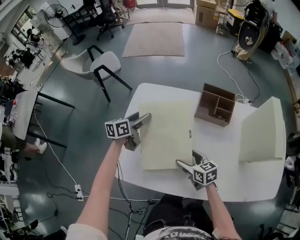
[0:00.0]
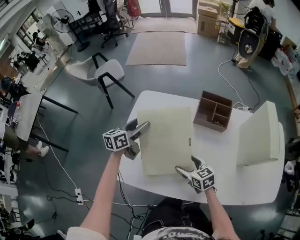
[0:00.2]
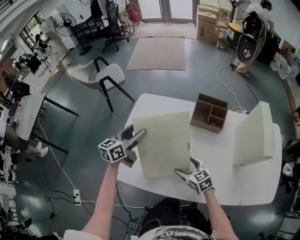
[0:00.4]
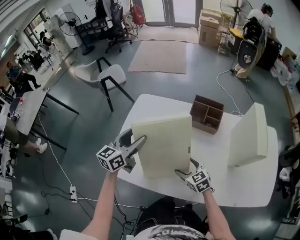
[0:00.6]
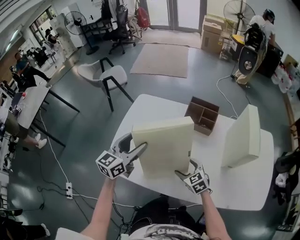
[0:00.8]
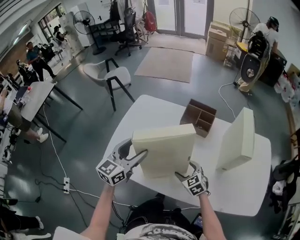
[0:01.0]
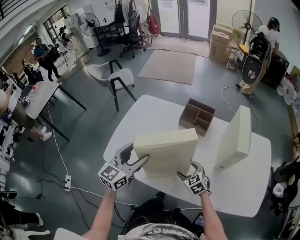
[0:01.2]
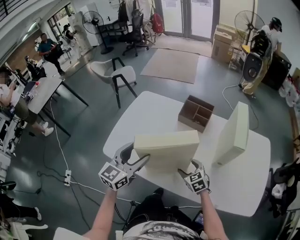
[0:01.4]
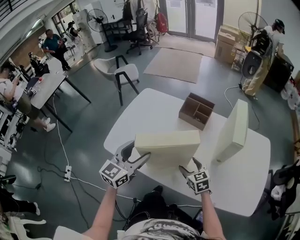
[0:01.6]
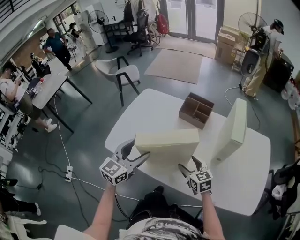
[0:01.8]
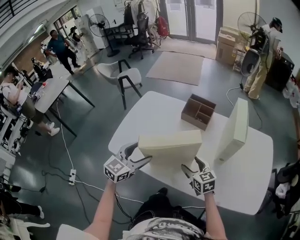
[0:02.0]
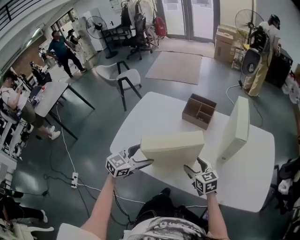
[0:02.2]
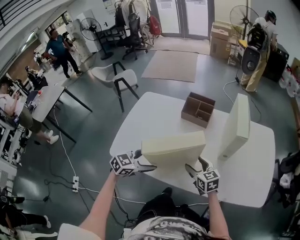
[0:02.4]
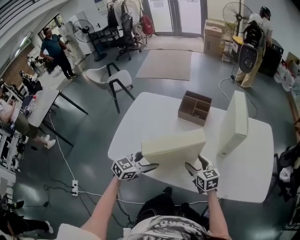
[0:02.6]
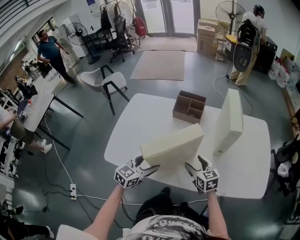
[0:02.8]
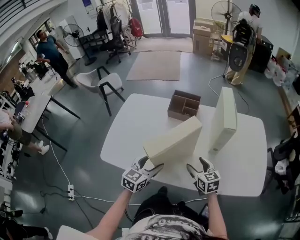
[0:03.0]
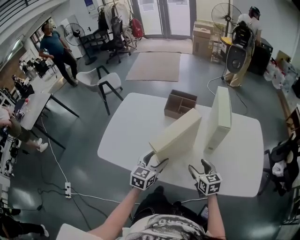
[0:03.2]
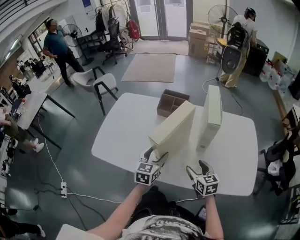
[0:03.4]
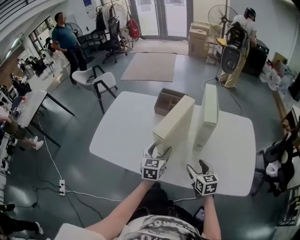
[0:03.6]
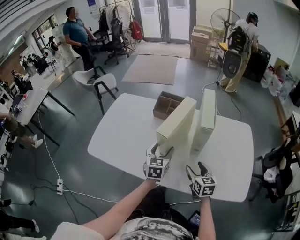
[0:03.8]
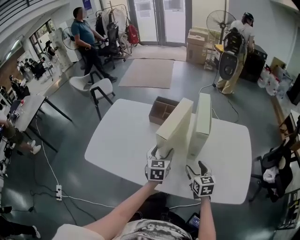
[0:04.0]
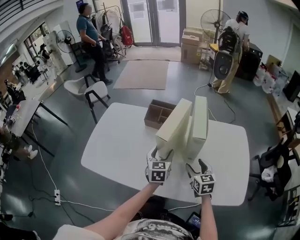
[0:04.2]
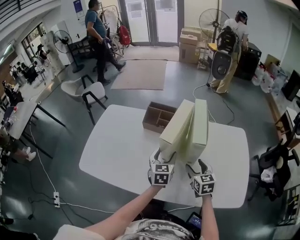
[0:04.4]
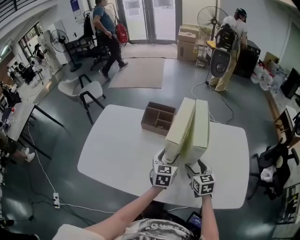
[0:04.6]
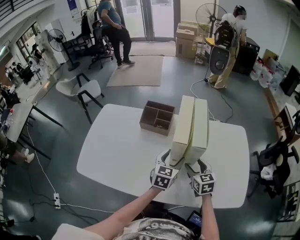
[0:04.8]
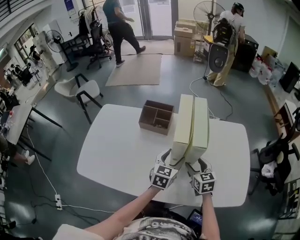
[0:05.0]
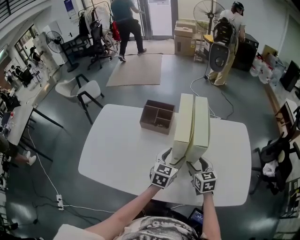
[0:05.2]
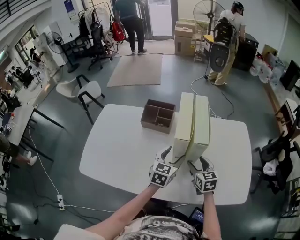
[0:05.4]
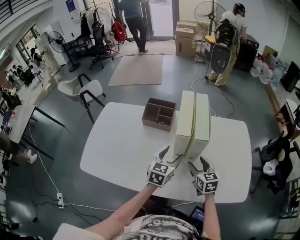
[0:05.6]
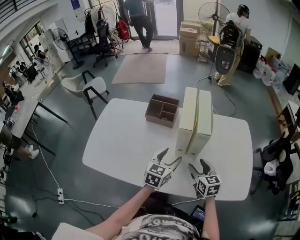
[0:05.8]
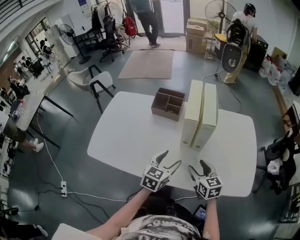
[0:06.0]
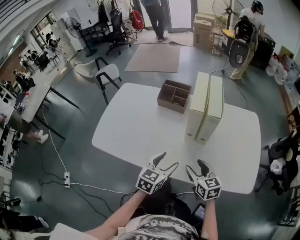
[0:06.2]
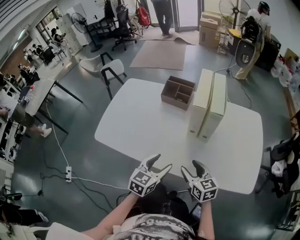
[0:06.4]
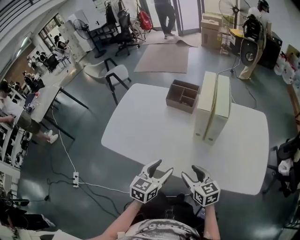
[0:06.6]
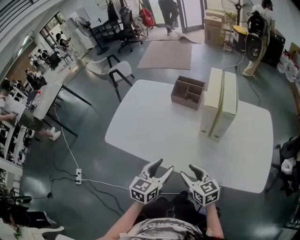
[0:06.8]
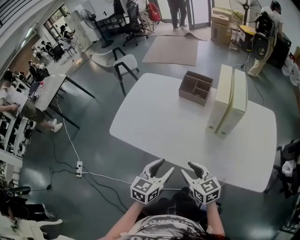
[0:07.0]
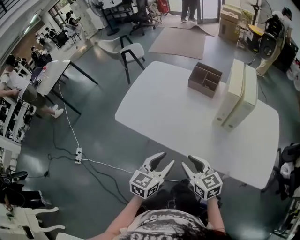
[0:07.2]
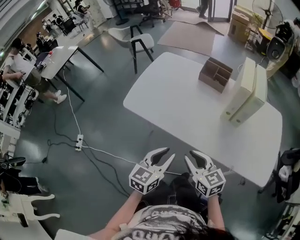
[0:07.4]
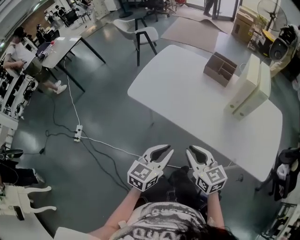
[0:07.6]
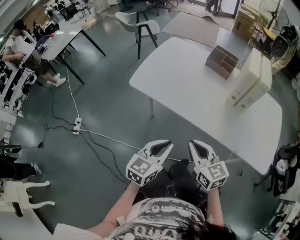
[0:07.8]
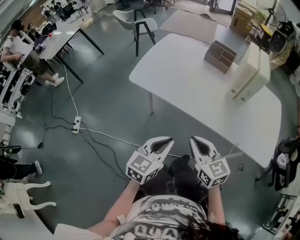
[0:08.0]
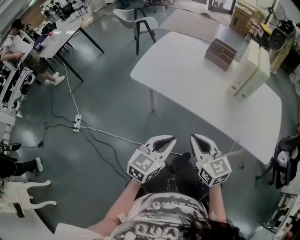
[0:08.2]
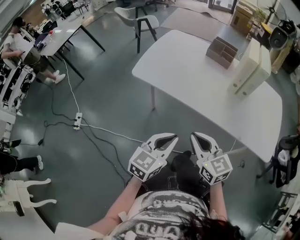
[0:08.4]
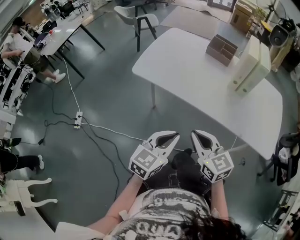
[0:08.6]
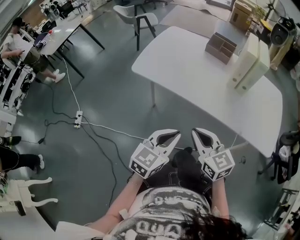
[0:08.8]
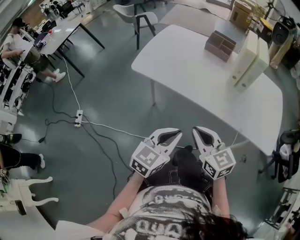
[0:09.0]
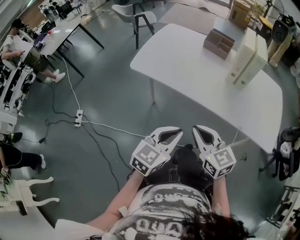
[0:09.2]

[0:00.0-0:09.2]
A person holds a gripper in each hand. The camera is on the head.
0:00.0 to 0:01.6: The left gripper travels backward and upward by roughly 40 cm, and swivels roughly 40 degrees. The right gripper is displaced to the right and backward by approximately 20 cm, and turns by approximately 30 degrees.
0:01.6 to 0:03.0: The right gripper heads to the right, covering approximately 5 cm. The left gripper travels downward and to the right by about 15 cm, and swivels some 20 degrees.
0:03.0 to 0:04.6: The right gripper goes some 15 cm to the right and forward, while the left gripper is displaced to the right and forward by about 25 cm.
0:04.6 to 0:06.2: The two grippers go approximately 15 cm backward.
0:06.2 to 0:07.6: Both grippers move to the left and backward, approximately 25 cm. The left gripper closes, while the right gripper swivels approximately 20 degrees, and closes.
0:07.6 to 0:09.2: Both grippers travel together backward, approximately 10 cm.

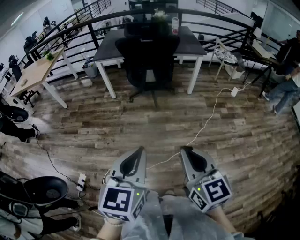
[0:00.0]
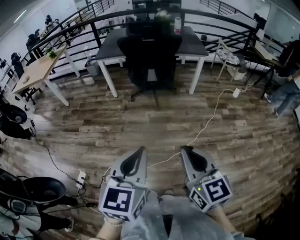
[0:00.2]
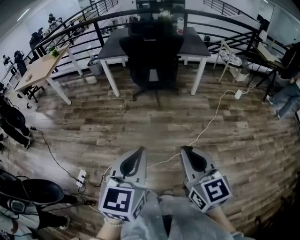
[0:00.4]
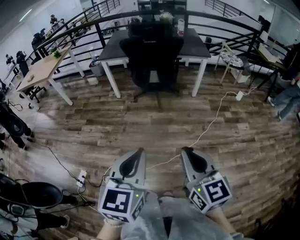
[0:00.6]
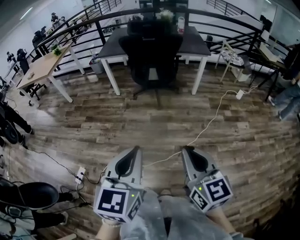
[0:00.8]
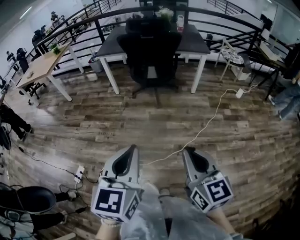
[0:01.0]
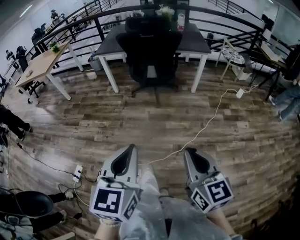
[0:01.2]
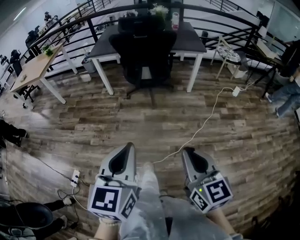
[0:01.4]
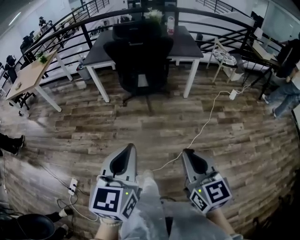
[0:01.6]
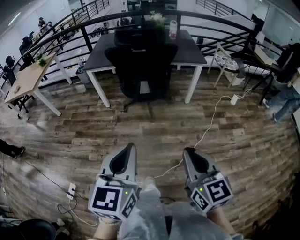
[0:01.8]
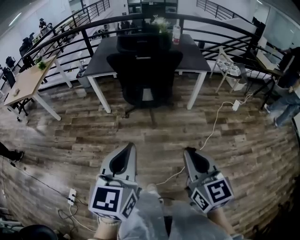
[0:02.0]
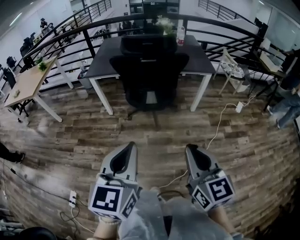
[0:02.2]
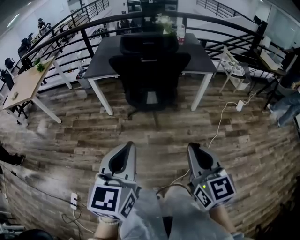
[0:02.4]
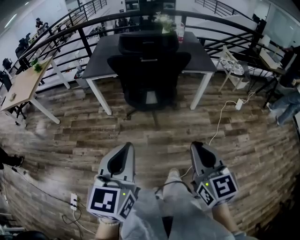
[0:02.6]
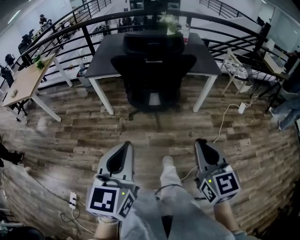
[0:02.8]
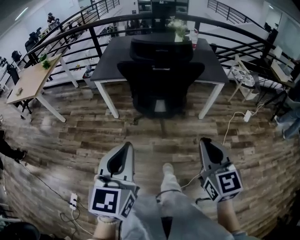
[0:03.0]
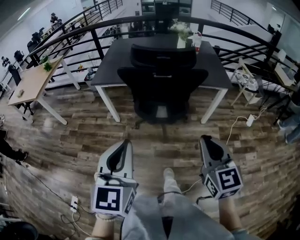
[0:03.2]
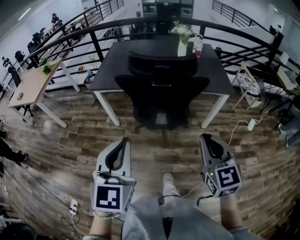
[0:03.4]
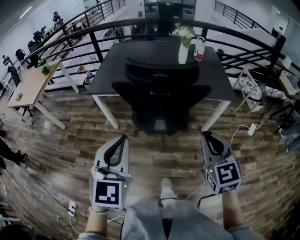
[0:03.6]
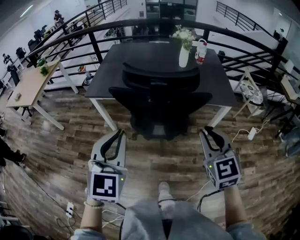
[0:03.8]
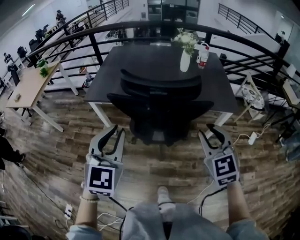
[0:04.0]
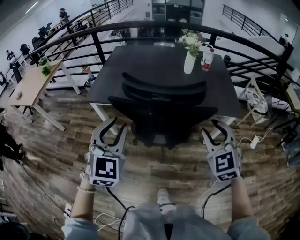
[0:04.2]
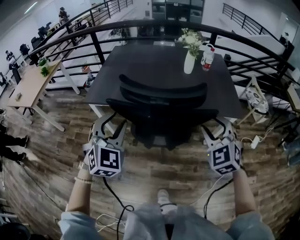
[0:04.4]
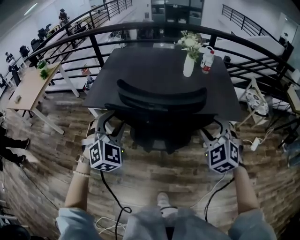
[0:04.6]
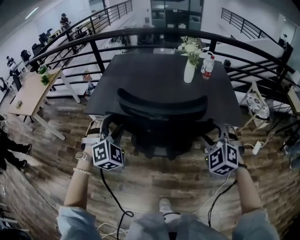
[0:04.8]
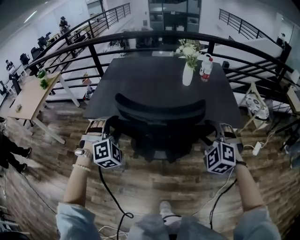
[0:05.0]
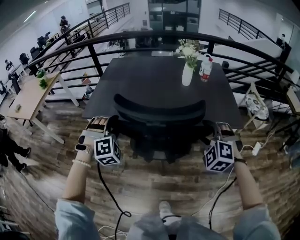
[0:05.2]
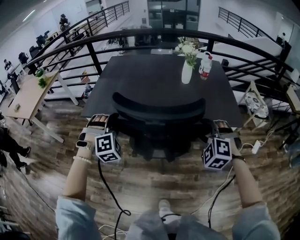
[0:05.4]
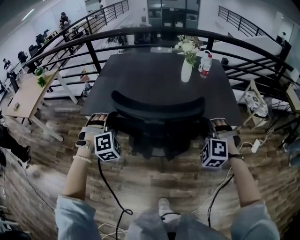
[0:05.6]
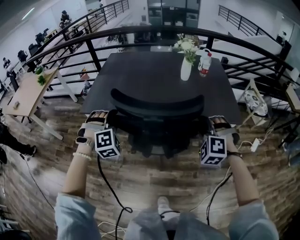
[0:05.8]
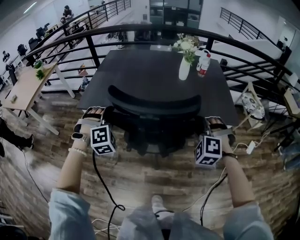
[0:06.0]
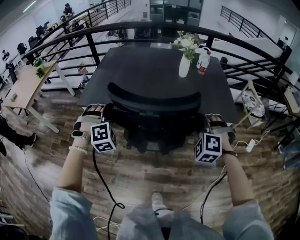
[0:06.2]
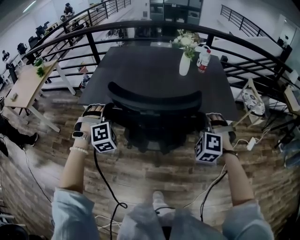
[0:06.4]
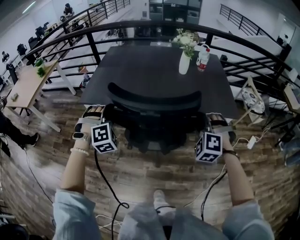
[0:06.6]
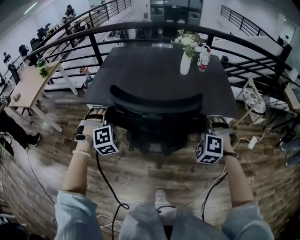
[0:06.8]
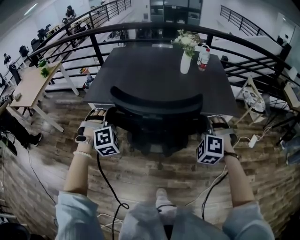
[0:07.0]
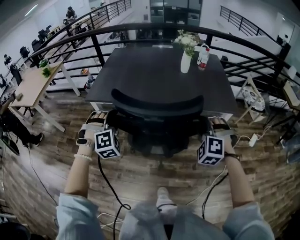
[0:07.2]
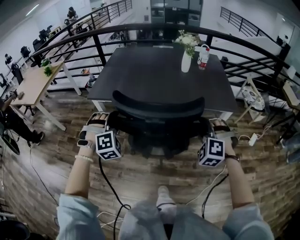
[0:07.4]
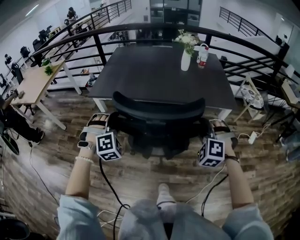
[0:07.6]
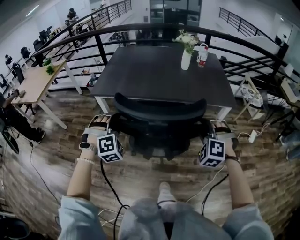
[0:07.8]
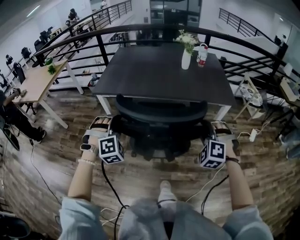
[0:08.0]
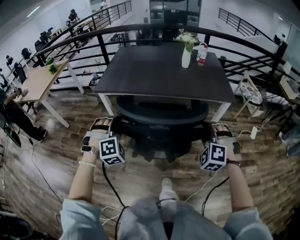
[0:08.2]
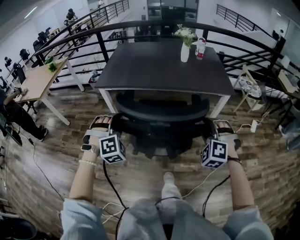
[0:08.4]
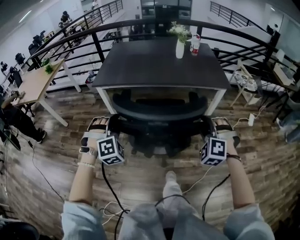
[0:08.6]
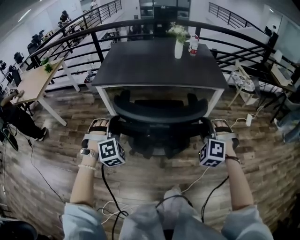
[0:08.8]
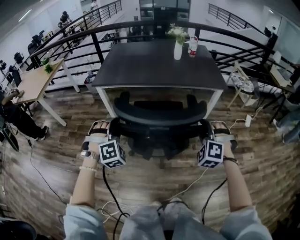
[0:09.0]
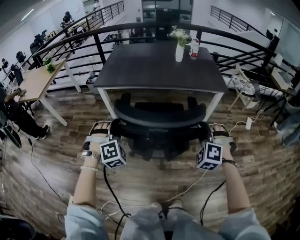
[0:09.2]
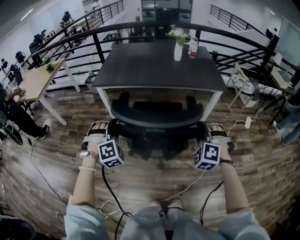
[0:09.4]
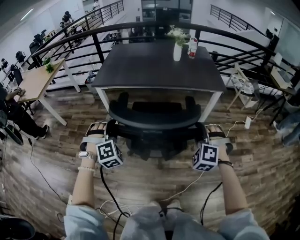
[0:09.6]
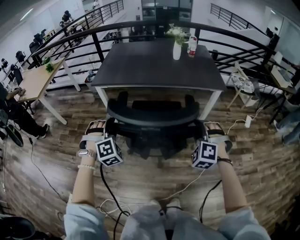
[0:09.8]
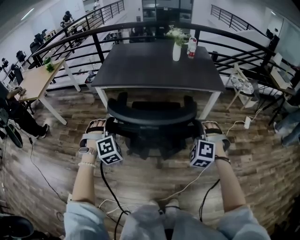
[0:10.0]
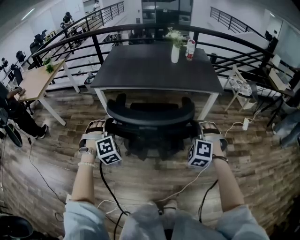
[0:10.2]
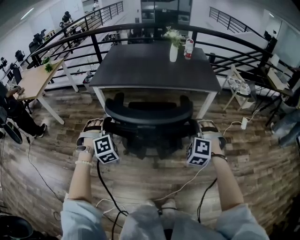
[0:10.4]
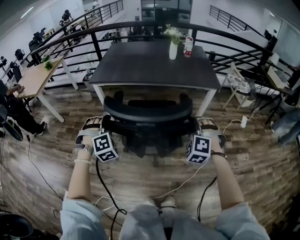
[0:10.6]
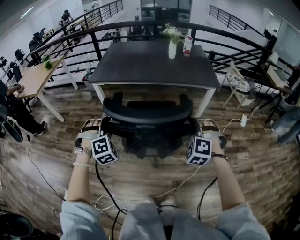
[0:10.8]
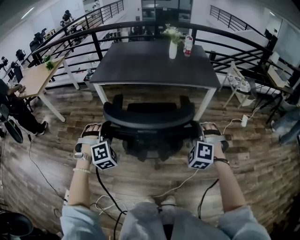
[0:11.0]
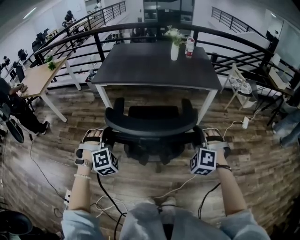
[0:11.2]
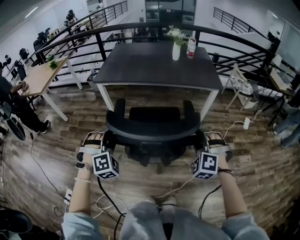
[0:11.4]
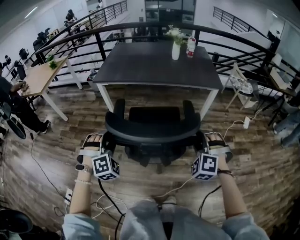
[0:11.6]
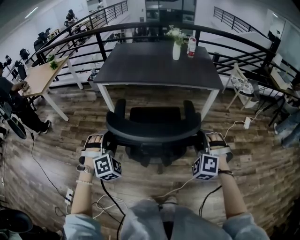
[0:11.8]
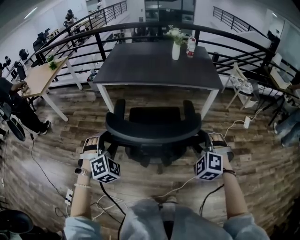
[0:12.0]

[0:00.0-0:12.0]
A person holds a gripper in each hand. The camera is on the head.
0:00.0 to 0:01.6: The left gripper travels forward by roughly 10 cm. Meanwhile the right gripper shifts approximately 10 cm to the right and forward.
0:01.6 to 0:03.0: The right gripper goes roughly 30 cm forward; the left gripper travels forward and to the left by about 25 cm.
0:03.0 to 0:04.4: The two grippers go approximately 35 cm forward. The left gripper rotates around the line of its fingers by about 40 degrees, clockwise from behind, and opens its fingers. The right gripper rolls counterclockwise, seen from behind, by some 40 degrees, and opens.
0:04.4 to 0:06.0: The right gripper travels downward and forward by roughly 10 cm, and changes its angle by some 40 degrees. Meanwhile the left gripper goes roughly 15 cm forward and downward, and twists approximately 40 degrees clockwise, seen from behind.
0:06.0 to 0:07.6: The grippers both shift backward by approximately 15 cm.
0:07.6 to 0:09.0: Both grippers move backward, about 15 cm.
0:09.0 to 0:10.4: There are only small adjustments of the grippers.
0:10.4 to 0:12.0: The grippers both shift backward by approximately 10 cm.

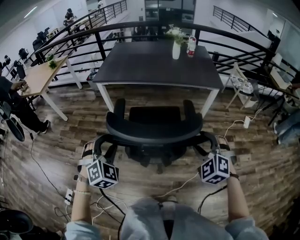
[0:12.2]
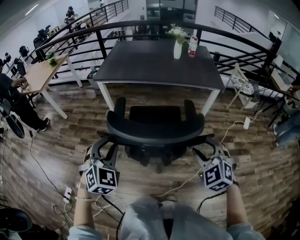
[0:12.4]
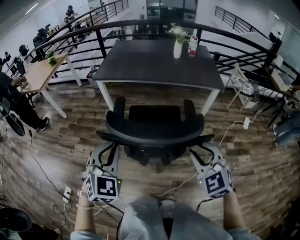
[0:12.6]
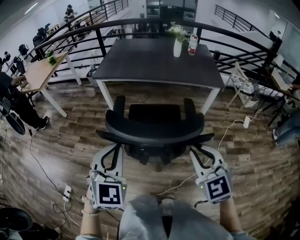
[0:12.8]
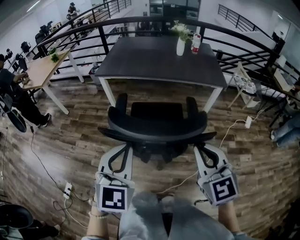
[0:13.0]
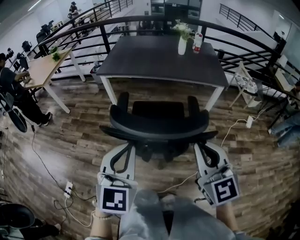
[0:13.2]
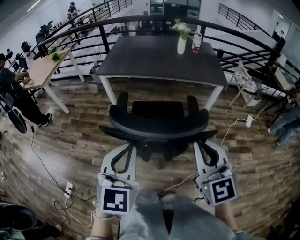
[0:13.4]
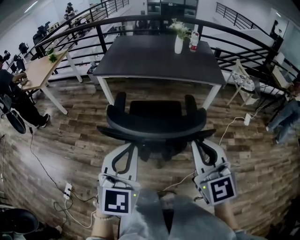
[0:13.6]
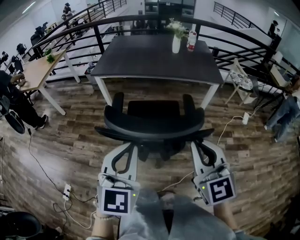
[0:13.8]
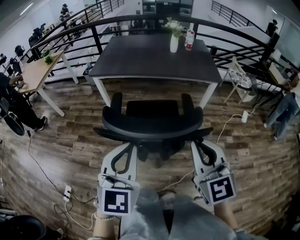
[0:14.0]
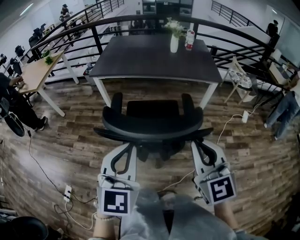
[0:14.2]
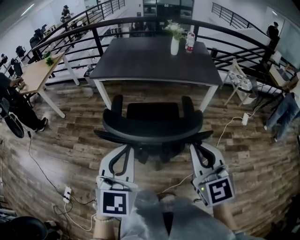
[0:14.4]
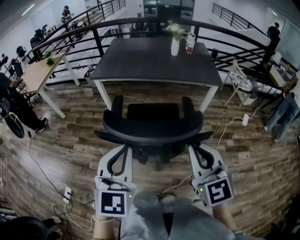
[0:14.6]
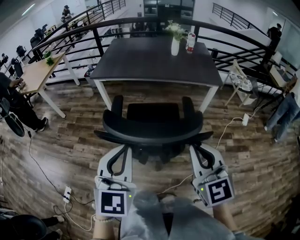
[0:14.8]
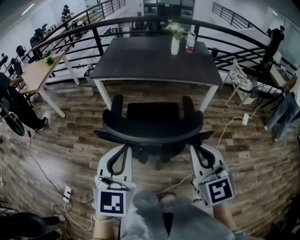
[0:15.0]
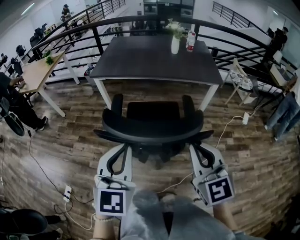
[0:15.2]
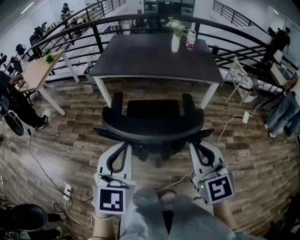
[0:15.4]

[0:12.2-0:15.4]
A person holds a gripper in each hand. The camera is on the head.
0:12.2 to 0:13.8: The left gripper shifts roughly 20 cm upward, to the right and backward, rotates approximately 50 degrees, and closes; the right gripper is displaced upward, to the left and backward by some 15 cm, tips its fingers upward by some 30 degrees, and closes.
0:13.8 to 0:15.4: The grippers stay close to where they were, moving slightly.
